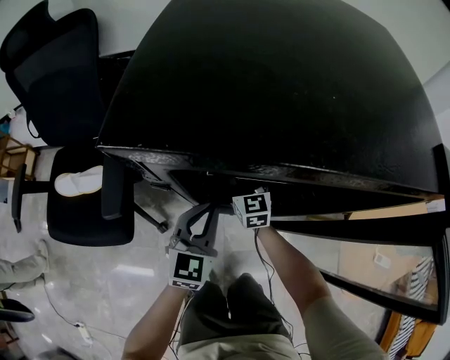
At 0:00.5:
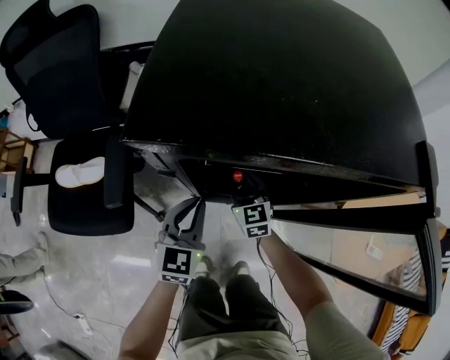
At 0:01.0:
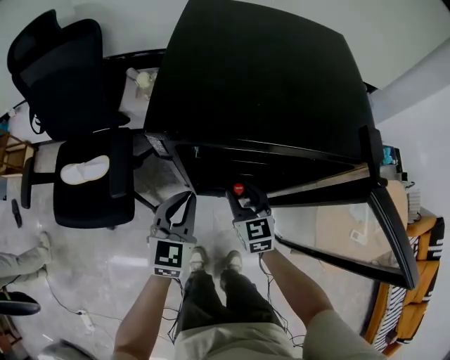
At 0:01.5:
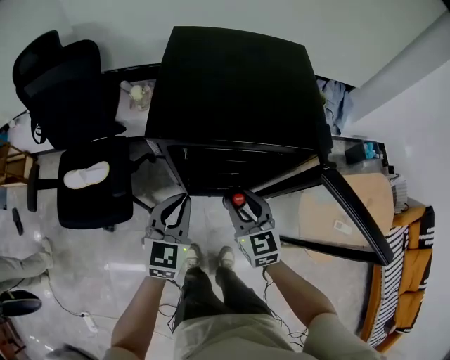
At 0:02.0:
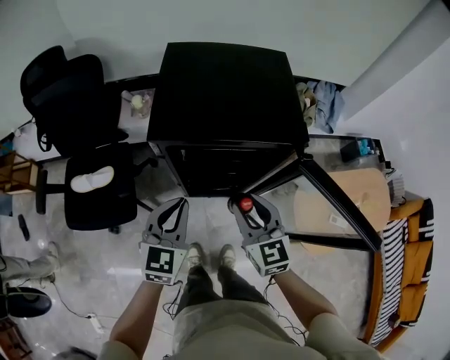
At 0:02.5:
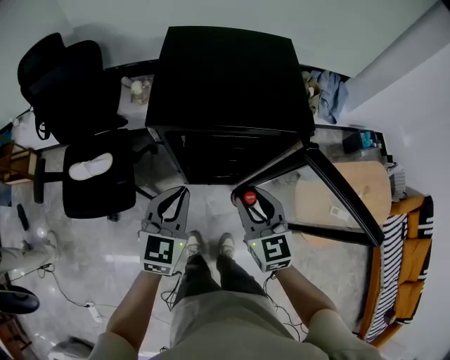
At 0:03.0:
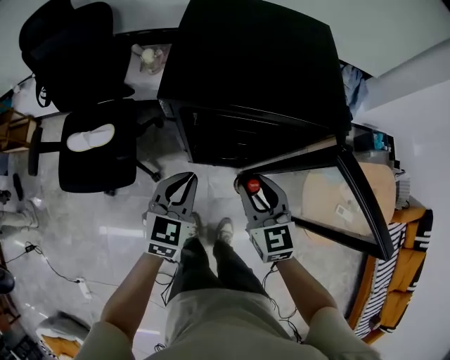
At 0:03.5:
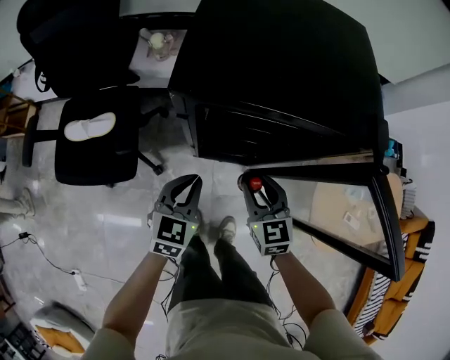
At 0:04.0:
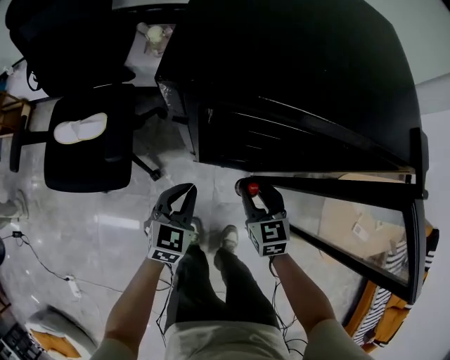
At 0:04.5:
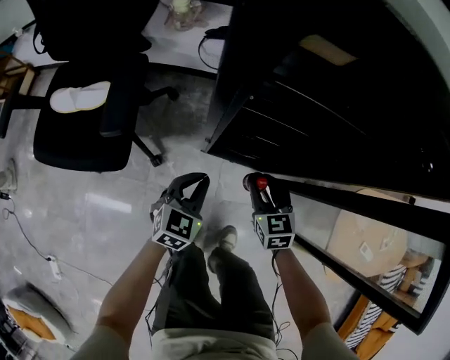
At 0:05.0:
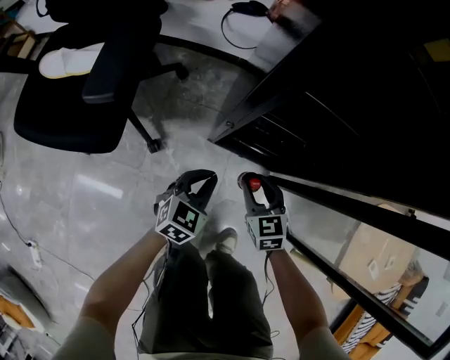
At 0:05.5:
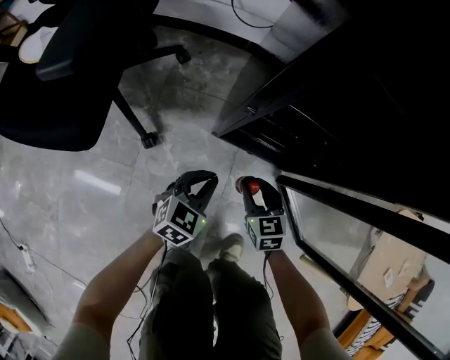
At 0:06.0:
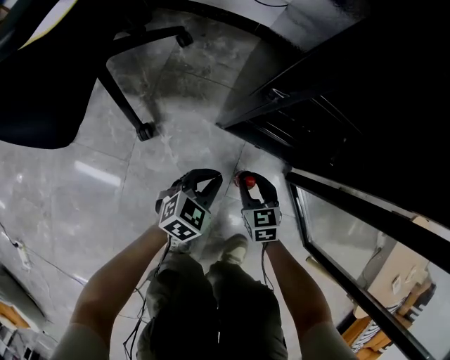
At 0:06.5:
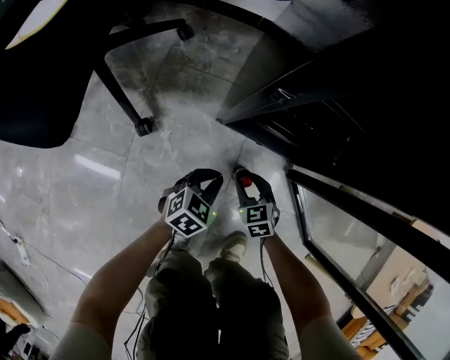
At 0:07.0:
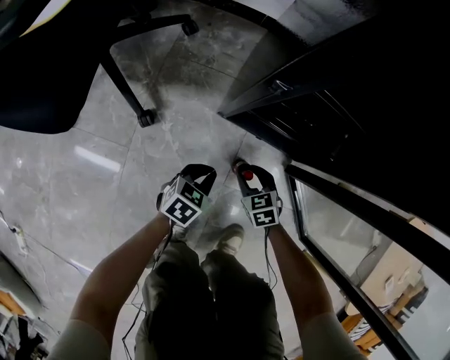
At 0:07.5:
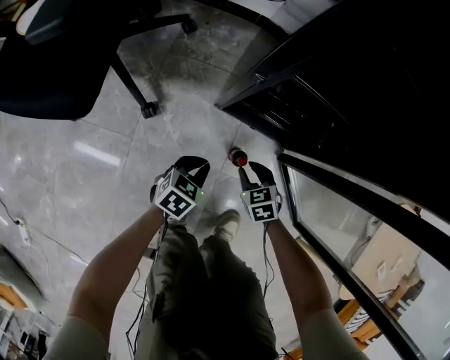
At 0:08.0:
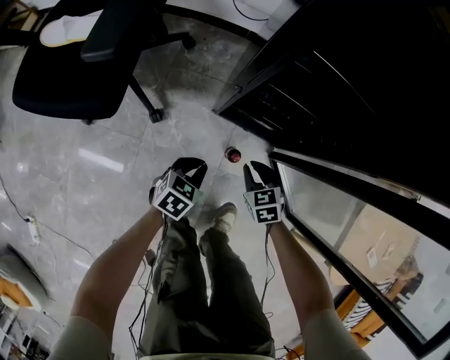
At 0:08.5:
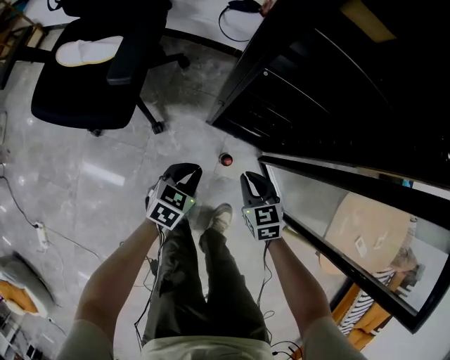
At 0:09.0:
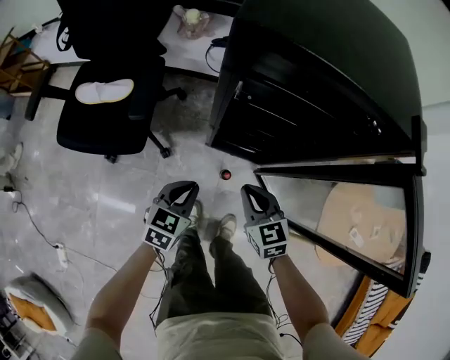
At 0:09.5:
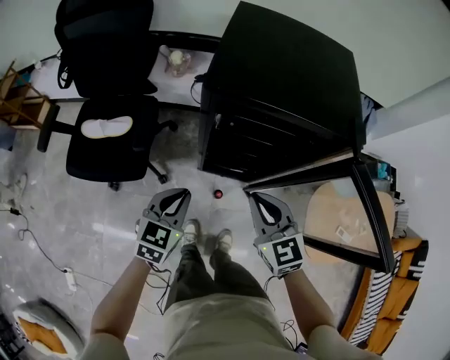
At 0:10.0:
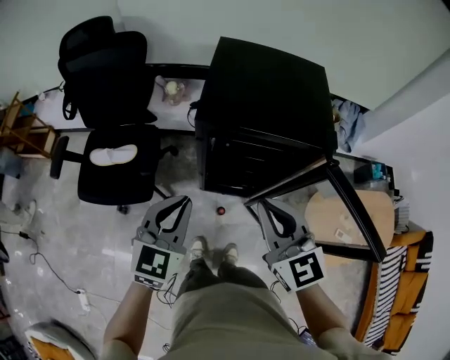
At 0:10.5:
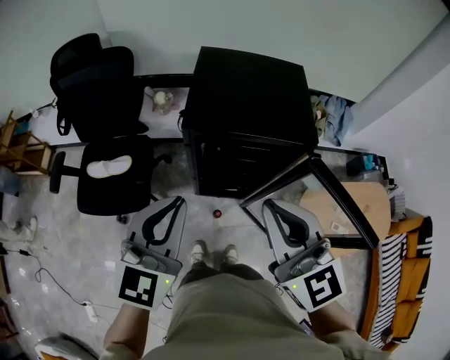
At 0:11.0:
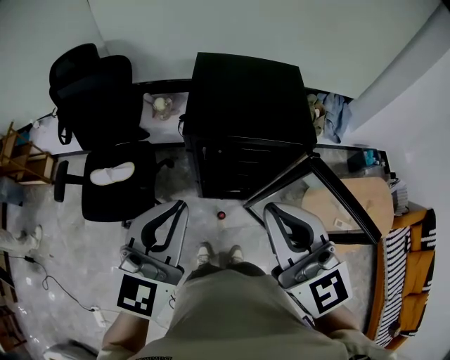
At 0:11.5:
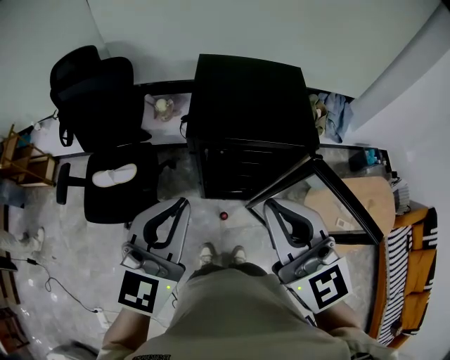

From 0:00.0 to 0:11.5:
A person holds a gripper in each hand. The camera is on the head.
From 0:00.0 to 0:02.0: Both grippers move upward and backward, roughly 40 cm.
From 0:02.0 to 0:04.0: Both grippers move downward, some 30 cm.
From 0:04.0 to 0:06.0: The grippers both shift downward by approximately 50 cm.
From 0:06.0 to 0:07.5: The grippers stay close to where they were, moving slightly.
From 0:07.5 to 0:09.5: The grippers both shift upward by roughly 70 cm. The right gripper points its fingers approximately 30 degrees further upward, and closes. Meanwhile the left gripper changes its angle by some 20 degrees.
From 0:09.5 to 0:11.5: Both grippers move upward, approximately 30 cm. The right gripper swivels some 20 degrees. Meanwhile the left gripper rotates roughly 30 degrees.

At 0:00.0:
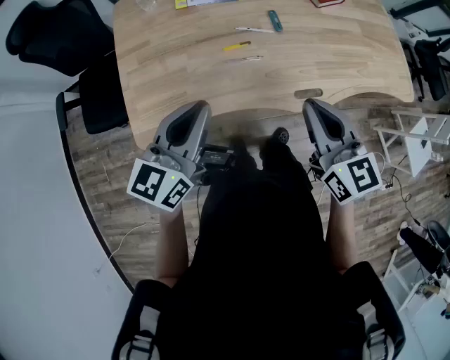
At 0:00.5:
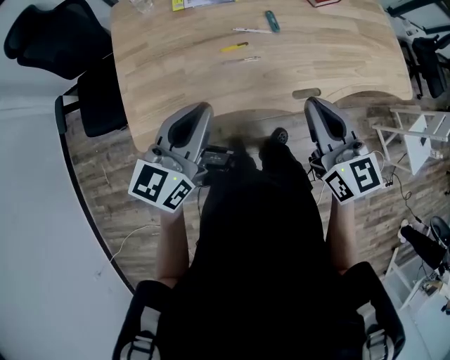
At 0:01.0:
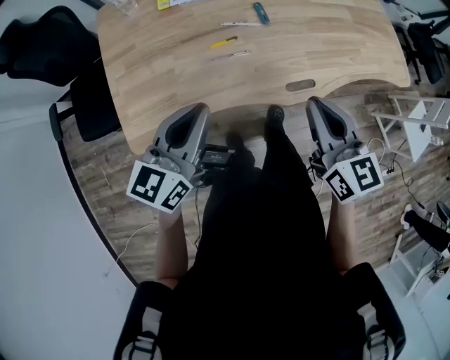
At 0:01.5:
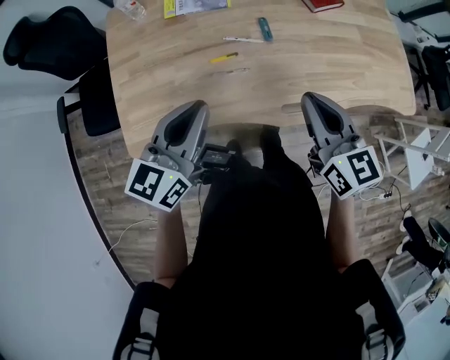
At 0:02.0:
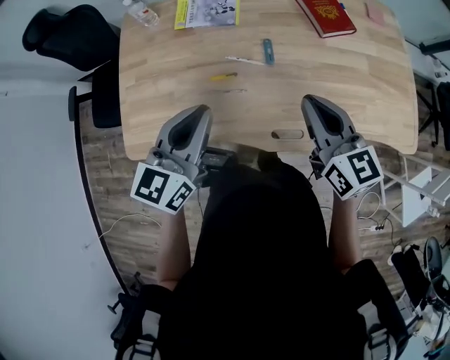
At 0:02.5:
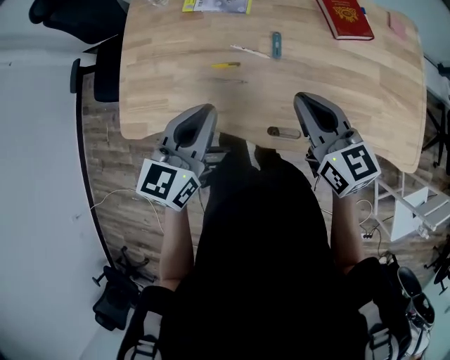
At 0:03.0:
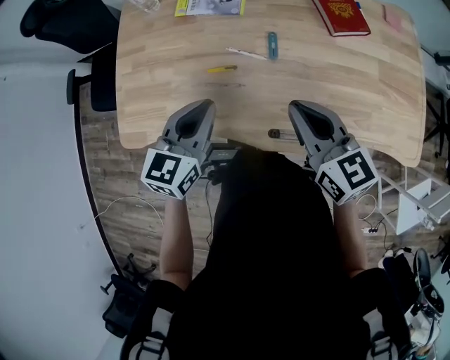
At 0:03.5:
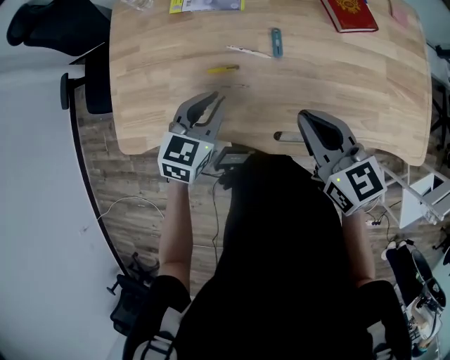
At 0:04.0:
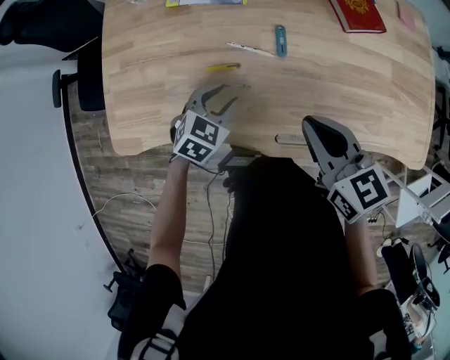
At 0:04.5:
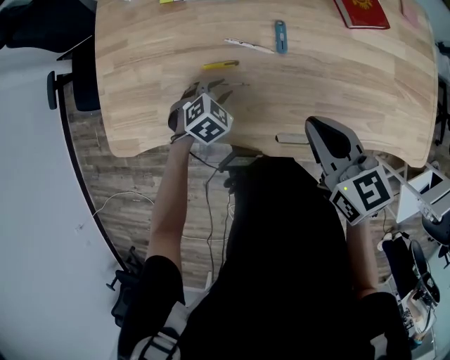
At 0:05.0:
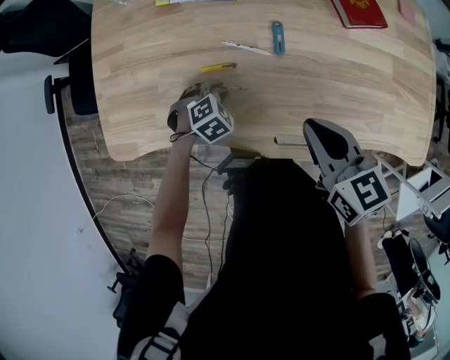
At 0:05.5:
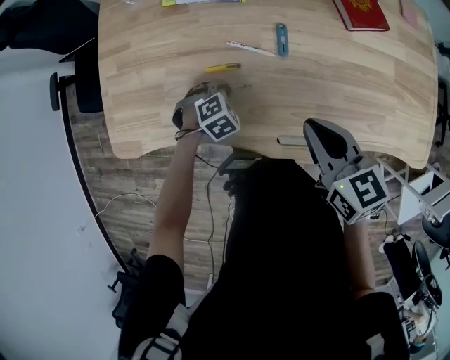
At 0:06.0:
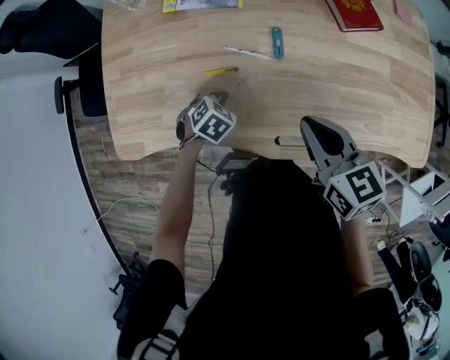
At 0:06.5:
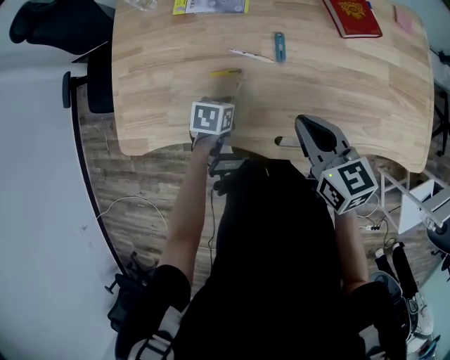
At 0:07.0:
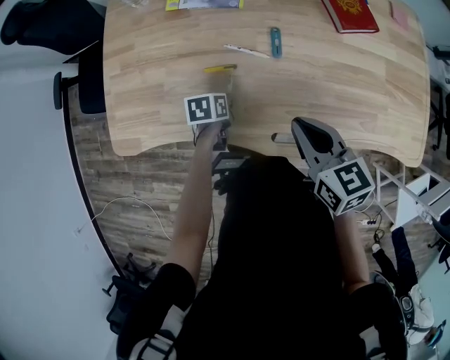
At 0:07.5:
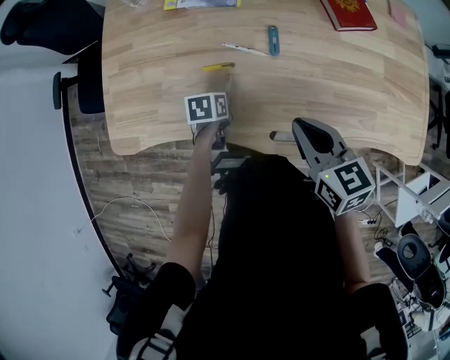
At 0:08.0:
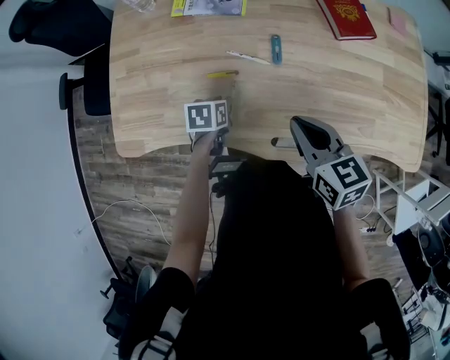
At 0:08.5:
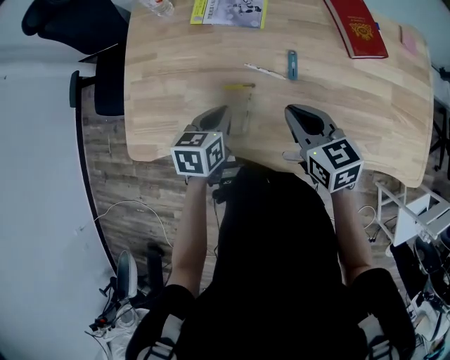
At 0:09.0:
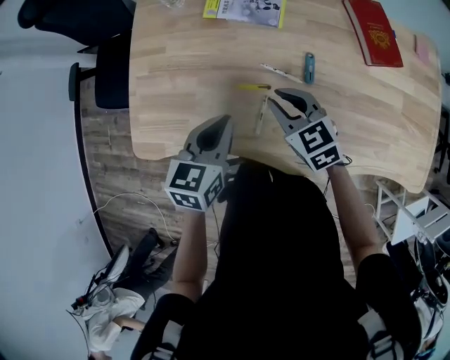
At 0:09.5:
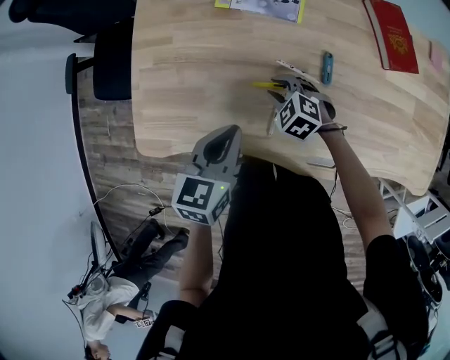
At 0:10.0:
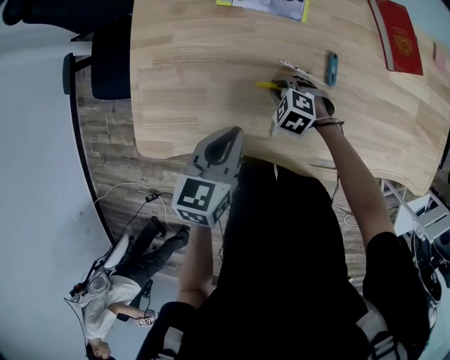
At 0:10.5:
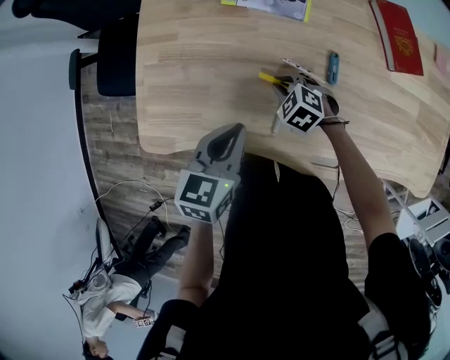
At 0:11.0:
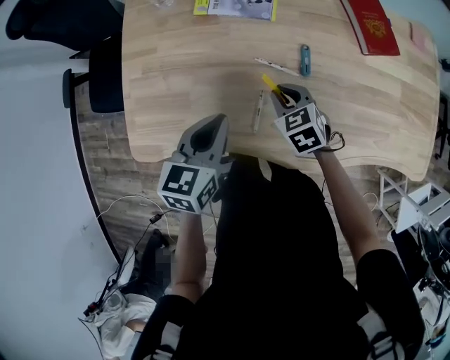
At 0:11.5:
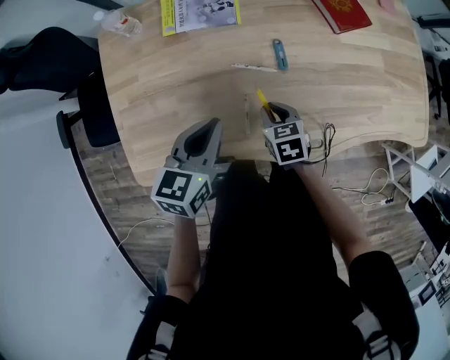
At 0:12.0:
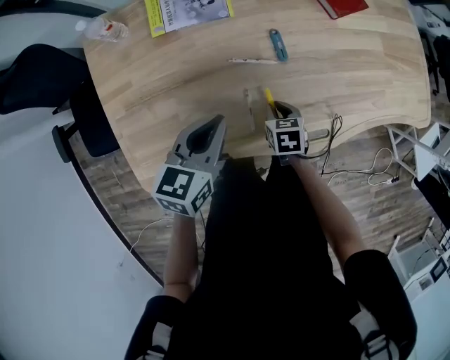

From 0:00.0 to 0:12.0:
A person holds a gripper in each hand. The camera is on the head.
From 0:00.0 to 0:02.0: The right gripper travels forward and to the right by roughly 20 cm; the left gripper shifts about 15 cm to the right and forward.
From 0:02.0 to 0:04.0: The right gripper is displaced downward by some 10 cm, while the left gripper shifts roughly 25 cm downward, tilts its fingers about 40 degrees downward, and opens its fingers.
From 0:04.0 to 0:06.0: The left gripper shifts roughly 10 cm downward, changes its angle by roughly 20 degrees, and closes its fingers.
From 0:06.0 to 0:08.0: The left gripper rotates around the line of its fingers by approximately 50 degrees, counterclockwise from behind.
From 0:08.0 to 0:10.0: The left gripper heads upward and to the left, covering some 20 cm, and swivels about 30 degrees; the right gripper travels downward, to the left and forward by some 35 cm, and tips its fingers downward by roughly 30 degrees.
From 0:10.0 to 0:12.0: The right gripper moves some 10 cm upward and comes back, and twists some 70 degrees clockwise, seen from behind, while the left gripper moves approximately 5 cm, and swivels approximately 20 degrees.

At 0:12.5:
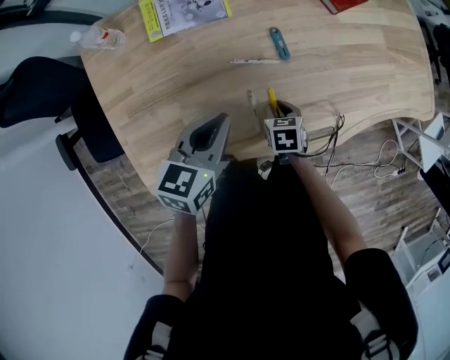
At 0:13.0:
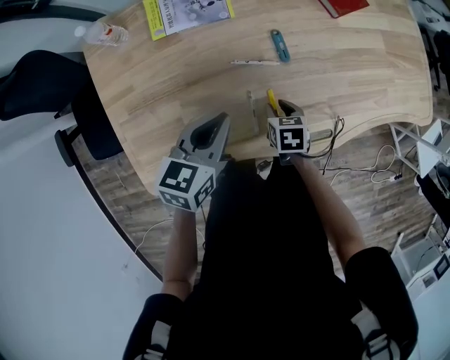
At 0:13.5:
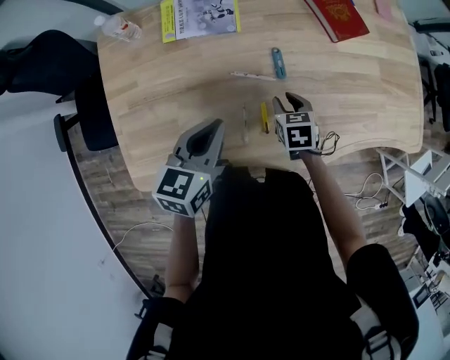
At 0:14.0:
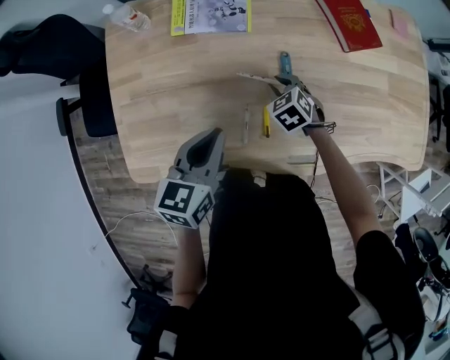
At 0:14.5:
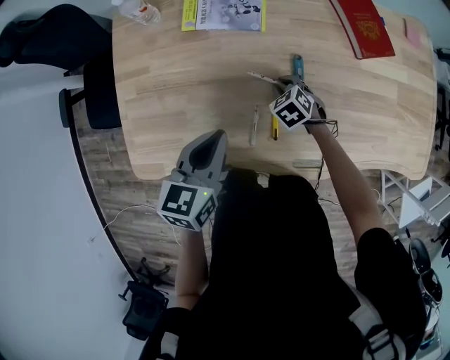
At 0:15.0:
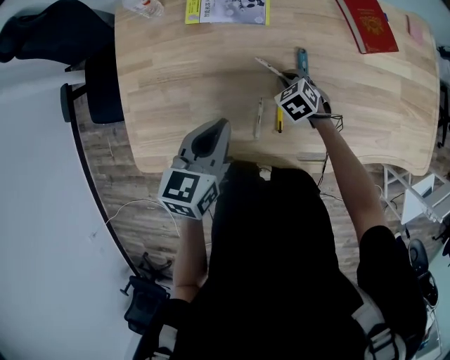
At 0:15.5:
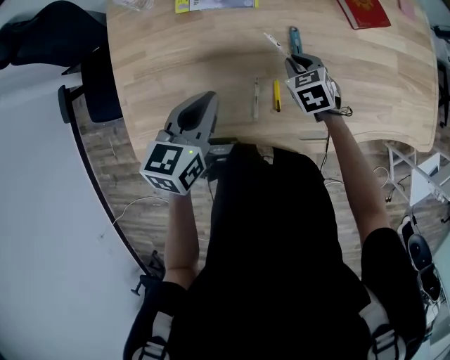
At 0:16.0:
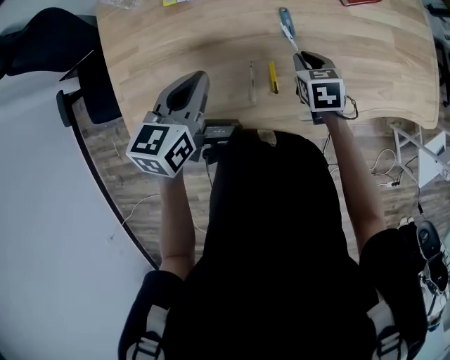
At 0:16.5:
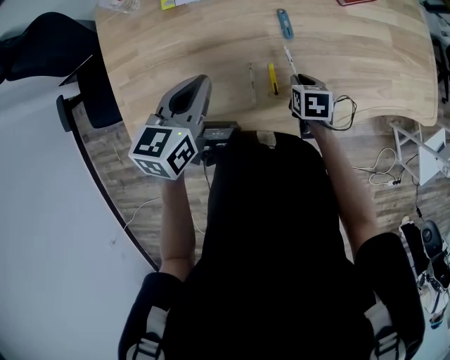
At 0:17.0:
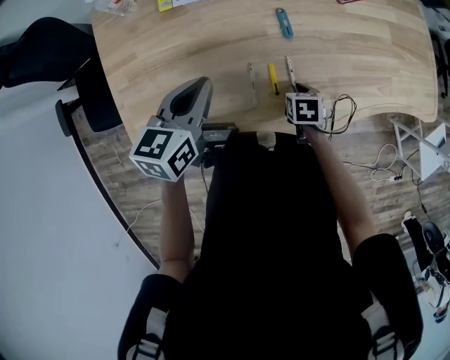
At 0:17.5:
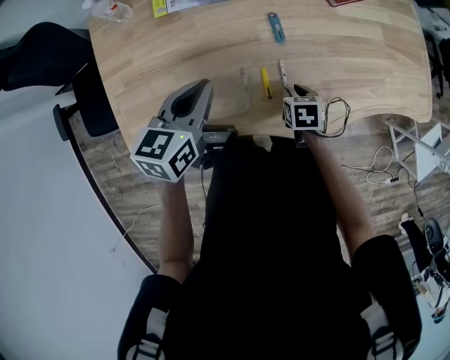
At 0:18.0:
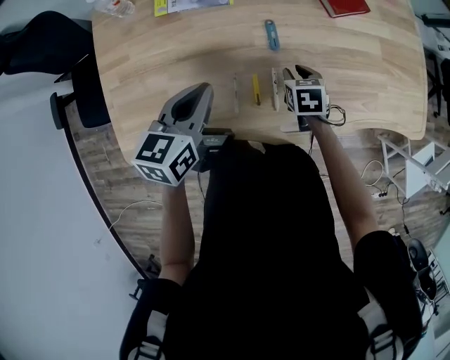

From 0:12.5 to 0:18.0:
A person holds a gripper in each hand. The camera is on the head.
From 0:12.5 to 0:14.5: The left gripper turns by some 20 degrees. Meanwhile the right gripper shifts by some 15 cm, and rolls counterclockwise, seen from behind, by roughly 50 degrees.
From 0:14.5 to 0:16.0: The right gripper is displaced upward, to the right and backward by approximately 15 cm, and changes its angle by some 40 degrees.
From 0:16.0 to 0:18.0: The left gripper goes some 5 cm to the right.
